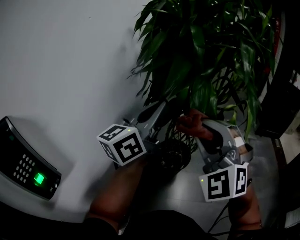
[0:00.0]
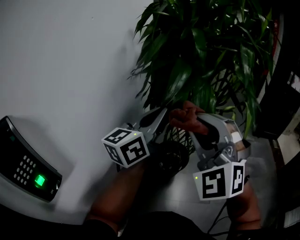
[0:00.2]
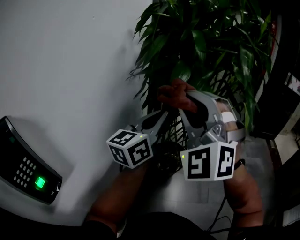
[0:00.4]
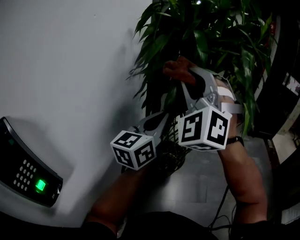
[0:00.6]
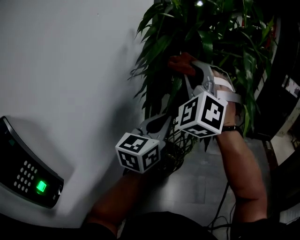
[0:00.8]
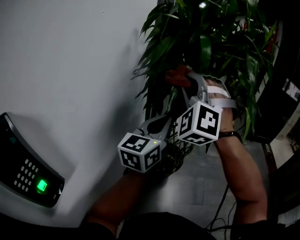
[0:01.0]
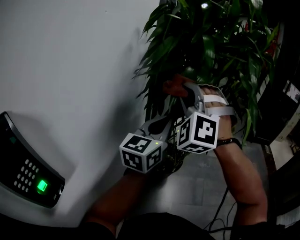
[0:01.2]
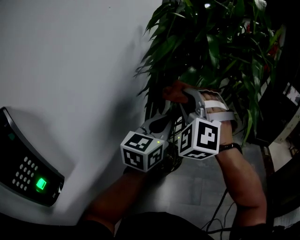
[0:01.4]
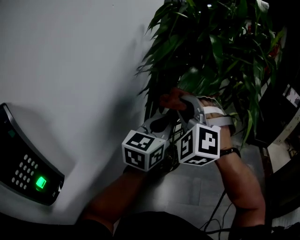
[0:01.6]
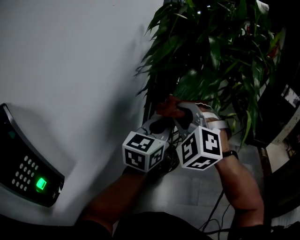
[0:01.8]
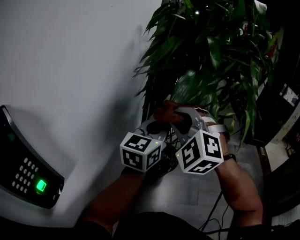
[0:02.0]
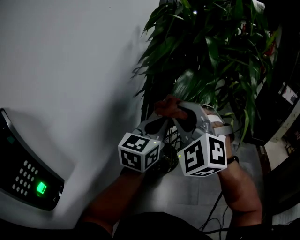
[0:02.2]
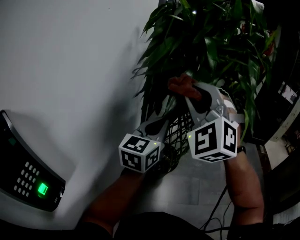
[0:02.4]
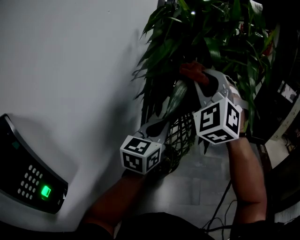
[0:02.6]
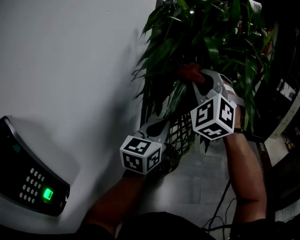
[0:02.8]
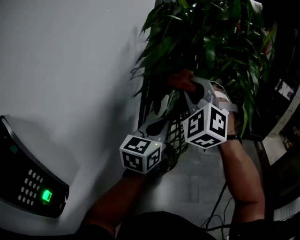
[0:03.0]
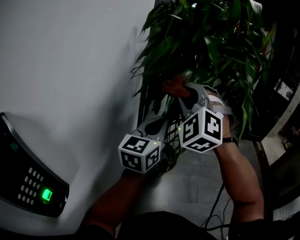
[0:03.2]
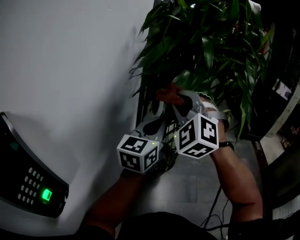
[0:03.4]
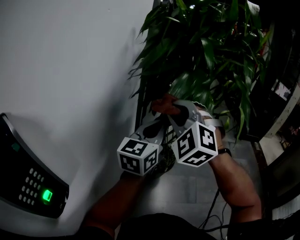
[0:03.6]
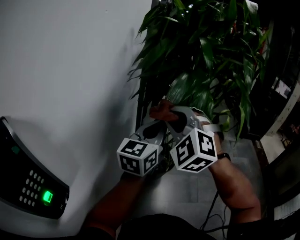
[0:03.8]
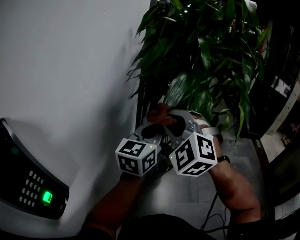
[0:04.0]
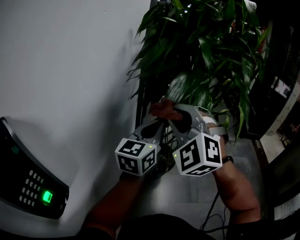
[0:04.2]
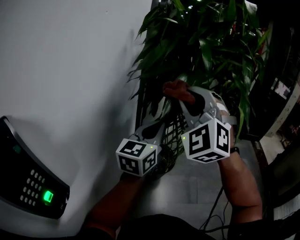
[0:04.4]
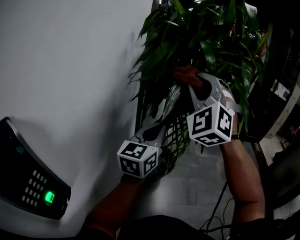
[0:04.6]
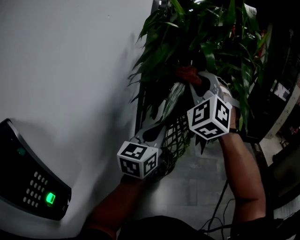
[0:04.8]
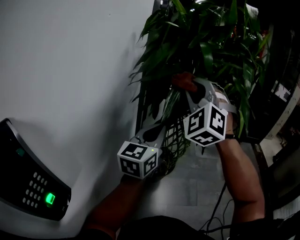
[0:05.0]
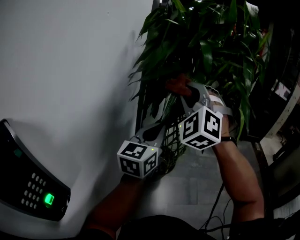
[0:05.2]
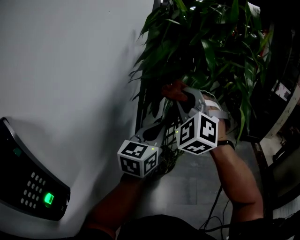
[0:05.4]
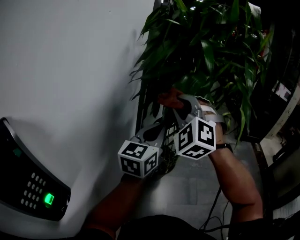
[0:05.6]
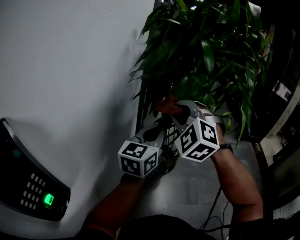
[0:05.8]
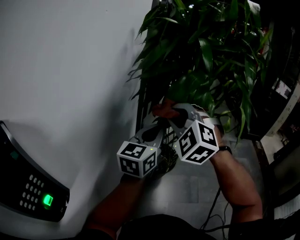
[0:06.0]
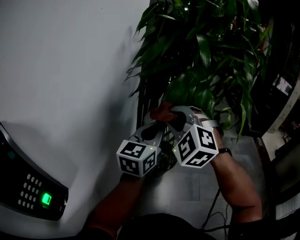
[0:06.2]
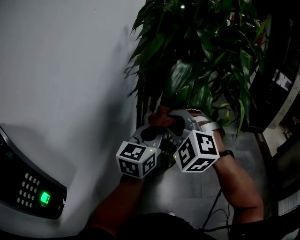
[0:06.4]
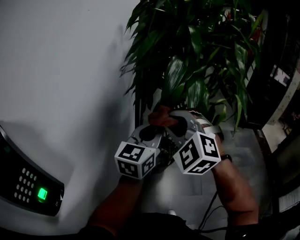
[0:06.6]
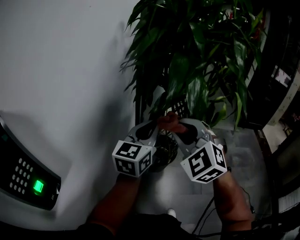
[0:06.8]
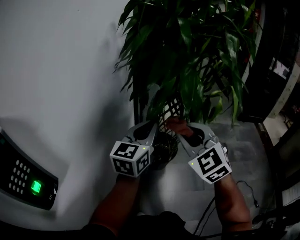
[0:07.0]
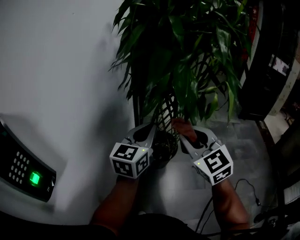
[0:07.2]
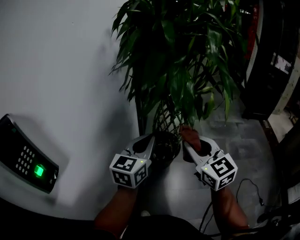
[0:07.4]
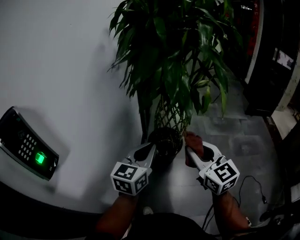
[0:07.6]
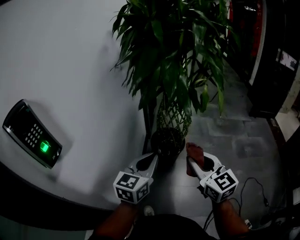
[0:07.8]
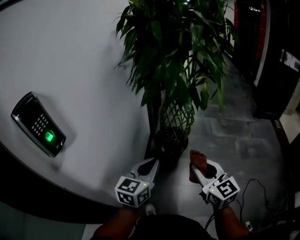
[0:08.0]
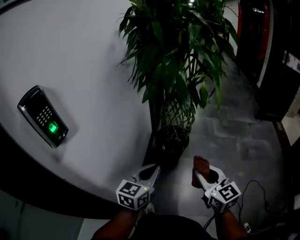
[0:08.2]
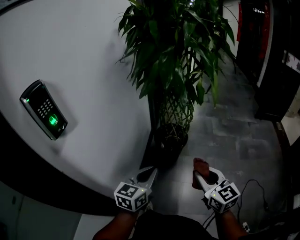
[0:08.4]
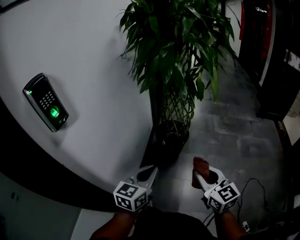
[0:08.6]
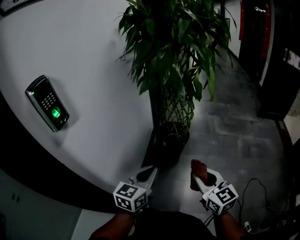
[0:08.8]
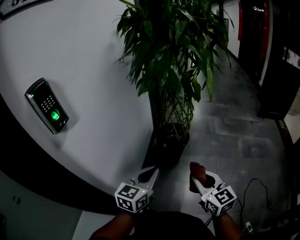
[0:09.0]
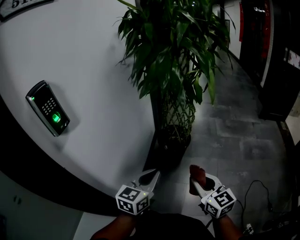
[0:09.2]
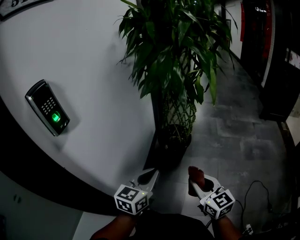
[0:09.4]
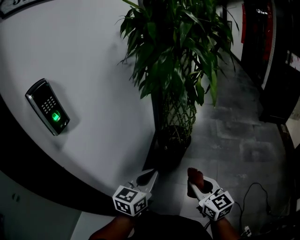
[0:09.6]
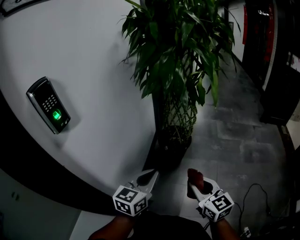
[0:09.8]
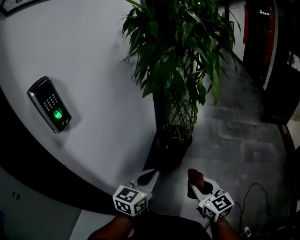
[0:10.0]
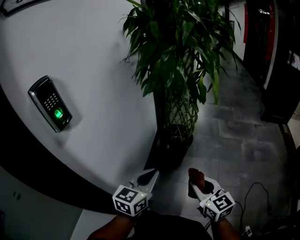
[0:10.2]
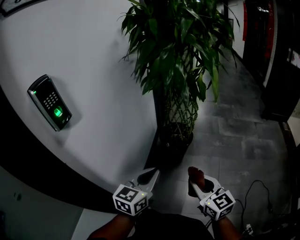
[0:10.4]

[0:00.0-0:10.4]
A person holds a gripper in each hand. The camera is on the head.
0:00.0 to 0:01.4: The left gripper travels downward by roughly 5 cm. Meanwhile the right gripper travels forward and to the left by about 15 cm, and swivels about 20 degrees.
0:01.4 to 0:03.0: The right gripper moves up and down over roughly 15 cm, changing direction 2 times.
0:03.0 to 0:04.4: The right gripper moves approximately 10 cm downward and comes back.
0:04.4 to 0:06.0: The right gripper shifts about 10 cm downward, and turns by some 20 degrees.
0:06.0 to 0:07.4: The left gripper goes some 10 cm backward and downward, while the right gripper moves to the right, backward and downward, about 20 cm, and twists roughly 60 degrees clockwise, seen from behind.
0:07.4 to 0:09.0: The left gripper travels backward and downward by approximately 25 cm; the right gripper moves backward, downward and to the right, about 25 cm.
0:09.0 to 0:10.4: The grippers stay close to where they were, moving slightly.

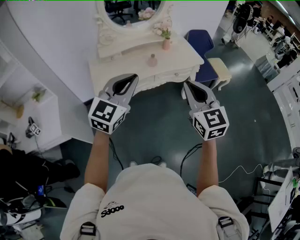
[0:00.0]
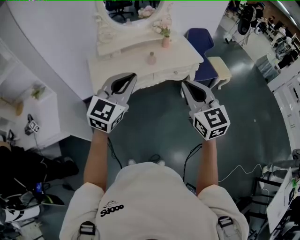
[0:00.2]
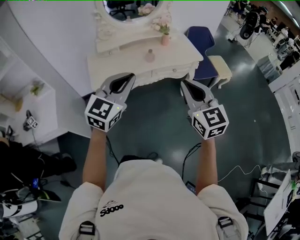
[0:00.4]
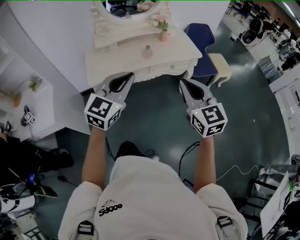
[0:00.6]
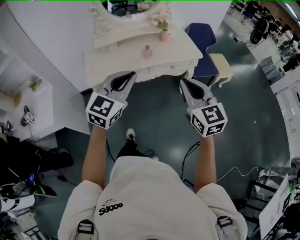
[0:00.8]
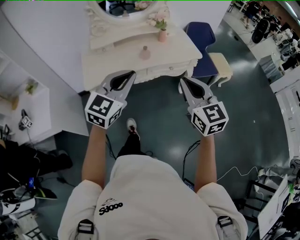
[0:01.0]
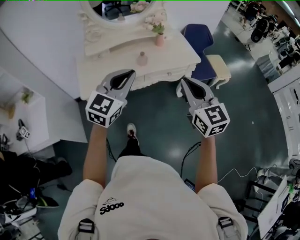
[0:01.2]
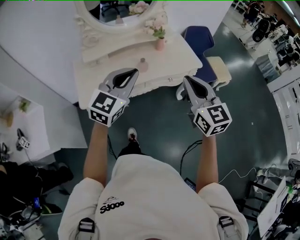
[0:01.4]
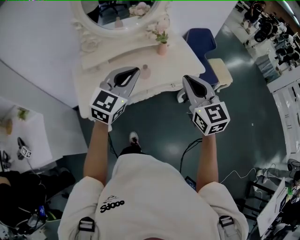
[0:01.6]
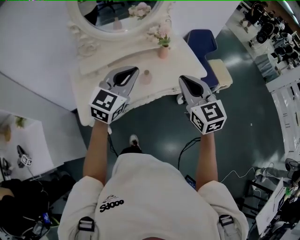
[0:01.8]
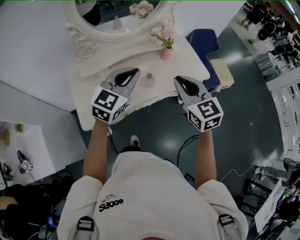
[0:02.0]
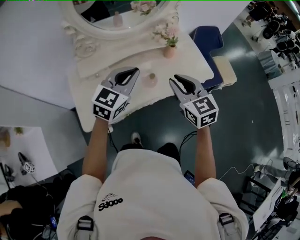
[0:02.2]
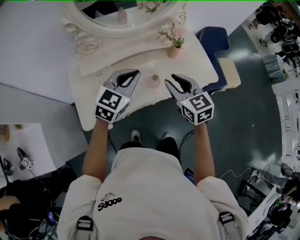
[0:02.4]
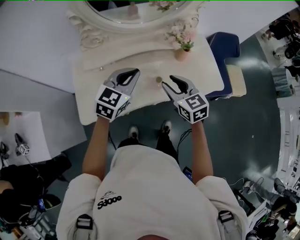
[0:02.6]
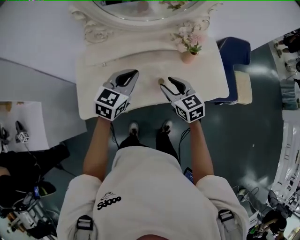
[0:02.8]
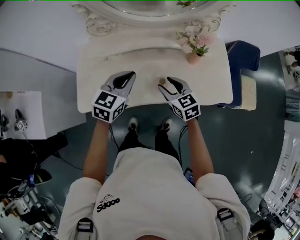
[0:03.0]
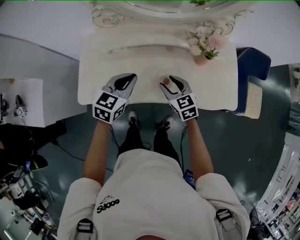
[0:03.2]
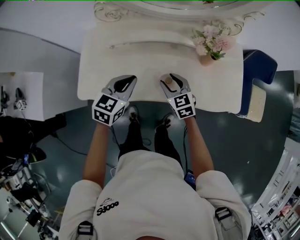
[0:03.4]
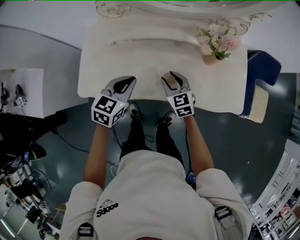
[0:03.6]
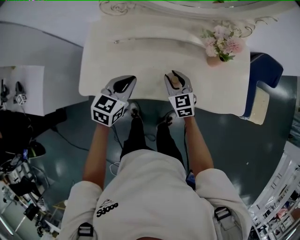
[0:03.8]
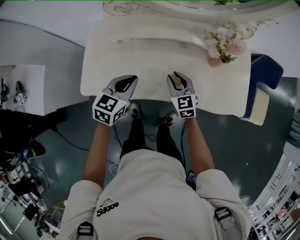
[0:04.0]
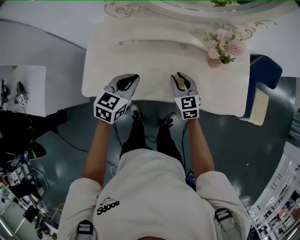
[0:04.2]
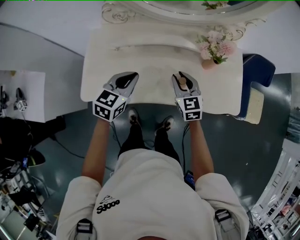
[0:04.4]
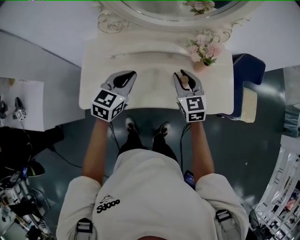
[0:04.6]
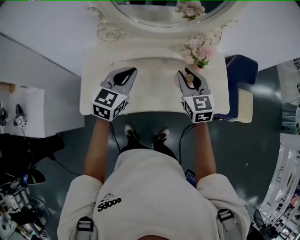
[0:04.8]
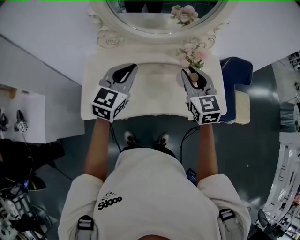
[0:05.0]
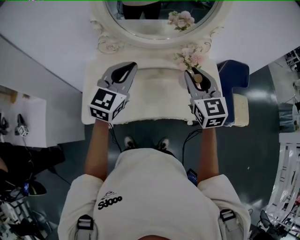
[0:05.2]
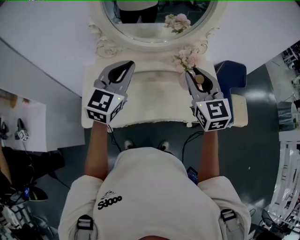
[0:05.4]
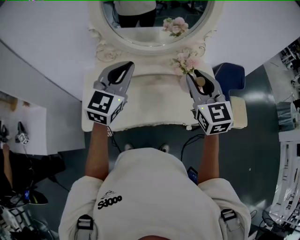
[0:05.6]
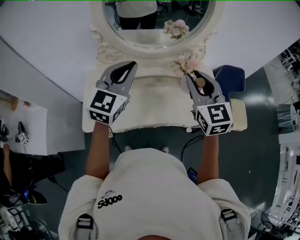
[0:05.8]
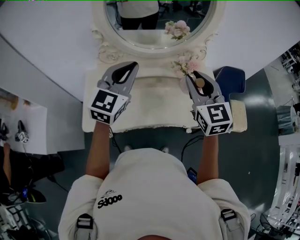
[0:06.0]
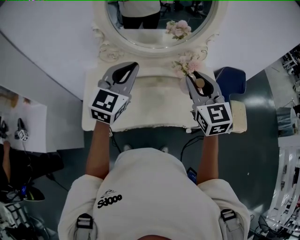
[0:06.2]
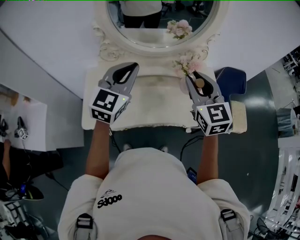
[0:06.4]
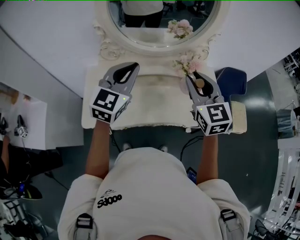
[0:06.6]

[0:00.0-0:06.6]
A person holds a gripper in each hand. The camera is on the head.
0:00.0 to 0:01.6: Both grippers move forward, some 25 cm.
0:01.6 to 0:03.2: The left gripper ends up approximately 30 cm from where it was, and turns by roughly 40 degrees; the right gripper travels downward by some 30 cm, turns by about 40 degrees, and opens up.
0:03.2 to 0:05.0: The right gripper shifts some 20 cm upward, turns by about 30 degrees, and closes up; the left gripper shifts roughly 15 cm upward, and rotates roughly 20 degrees.
0:05.0 to 0:06.6: Both grippers travel together upward, some 5 cm.

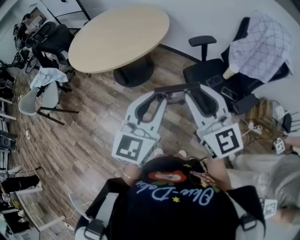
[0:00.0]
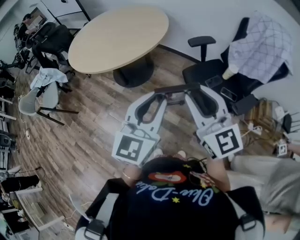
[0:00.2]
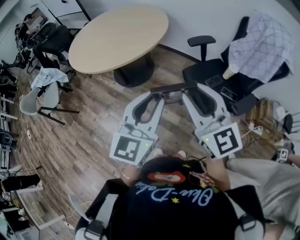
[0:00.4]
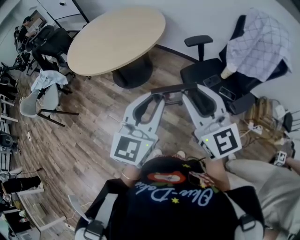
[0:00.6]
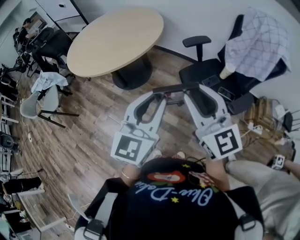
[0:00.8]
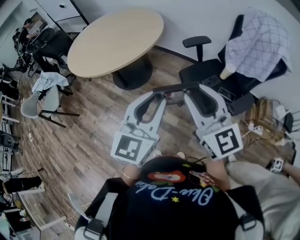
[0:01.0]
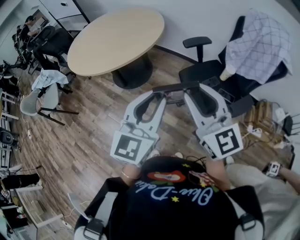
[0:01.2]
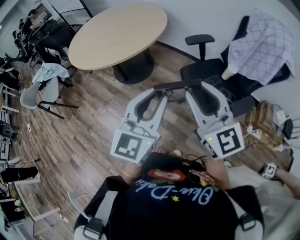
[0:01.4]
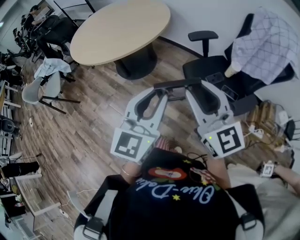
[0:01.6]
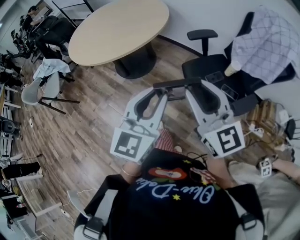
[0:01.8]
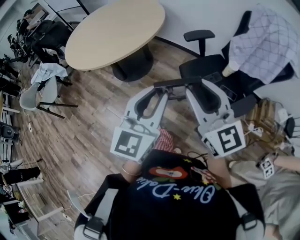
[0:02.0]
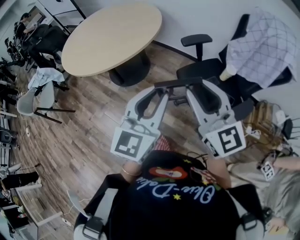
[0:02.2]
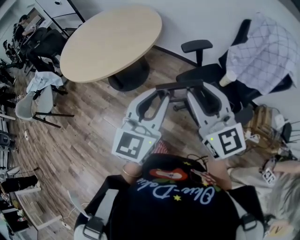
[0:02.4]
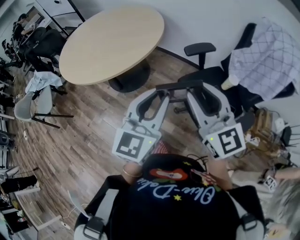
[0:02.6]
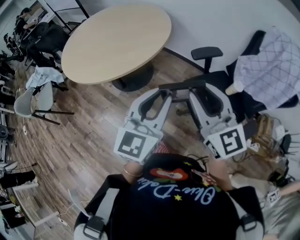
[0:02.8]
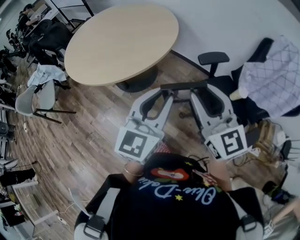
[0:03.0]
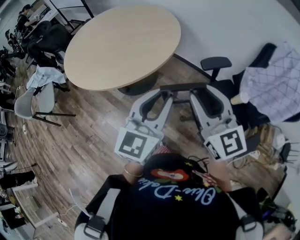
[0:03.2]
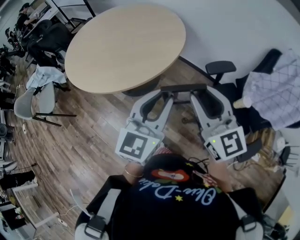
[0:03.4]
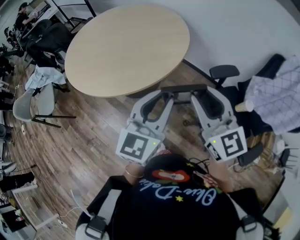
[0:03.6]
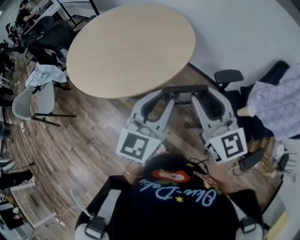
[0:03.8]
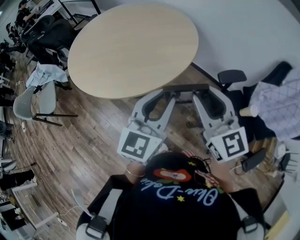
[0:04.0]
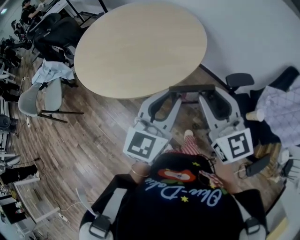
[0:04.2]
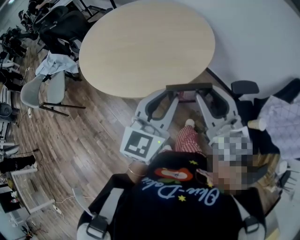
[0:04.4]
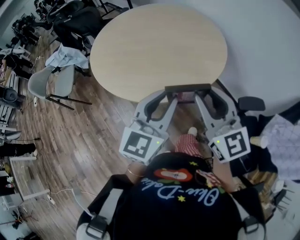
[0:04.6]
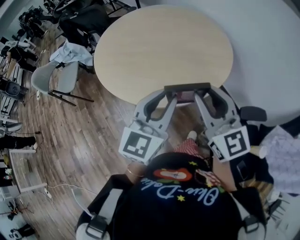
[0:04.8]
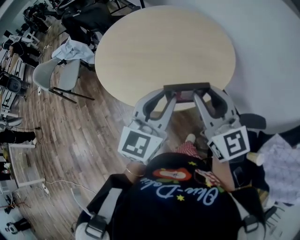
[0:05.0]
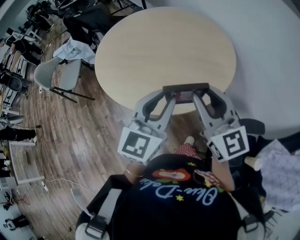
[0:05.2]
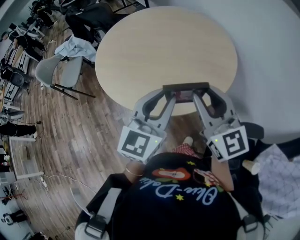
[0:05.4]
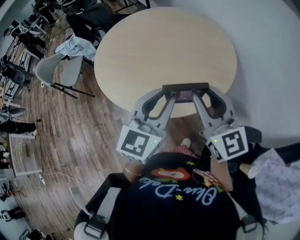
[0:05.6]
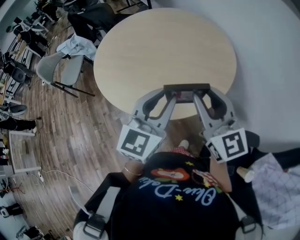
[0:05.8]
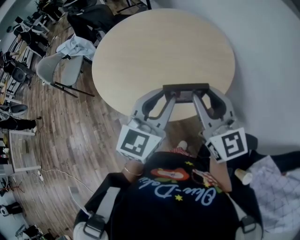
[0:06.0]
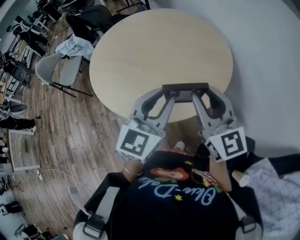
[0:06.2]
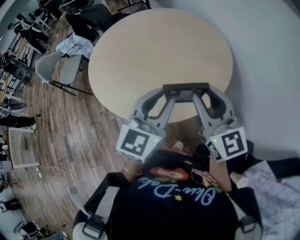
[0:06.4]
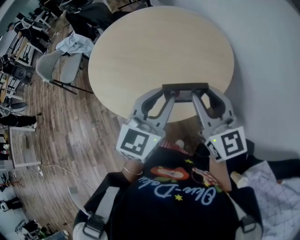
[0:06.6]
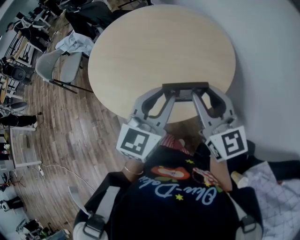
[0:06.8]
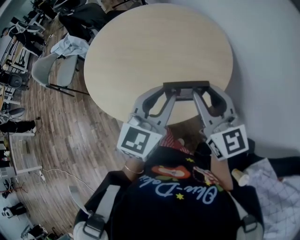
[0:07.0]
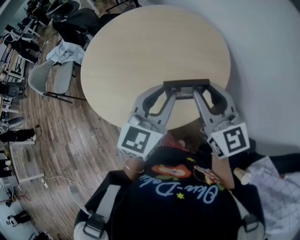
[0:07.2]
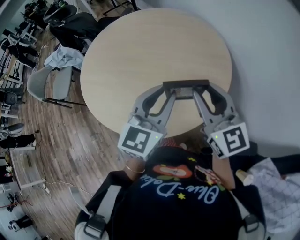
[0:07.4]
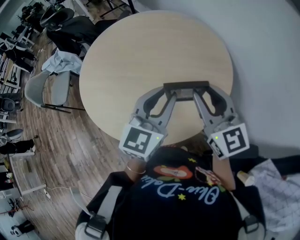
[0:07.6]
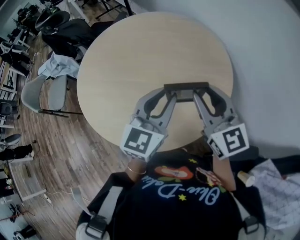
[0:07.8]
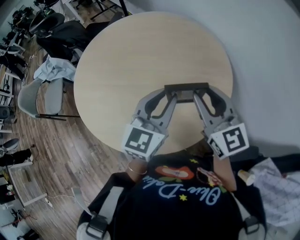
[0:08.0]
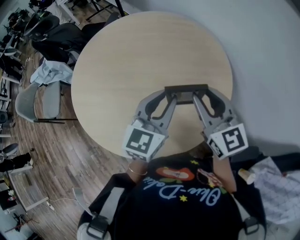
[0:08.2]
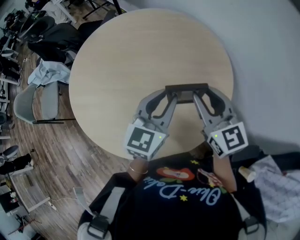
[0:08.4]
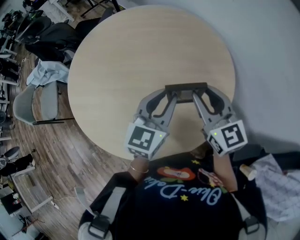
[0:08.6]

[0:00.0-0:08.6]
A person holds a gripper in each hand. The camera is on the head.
0:00.0 to 0:01.4: Both grippers move to the right, roughly 5 cm.
0:01.4 to 0:02.8: The two grippers go some 15 cm forward.
0:02.8 to 0:04.4: Both grippers move forward and to the left, roughly 20 cm.
0:04.4 to 0:05.8: The two grippers go roughly 15 cm forward.
0:05.8 to 0:07.2: Both grippers travel together forward, roughly 10 cm.
0:07.2 to 0:08.6: Both grippers move forward and downward, some 15 cm.
